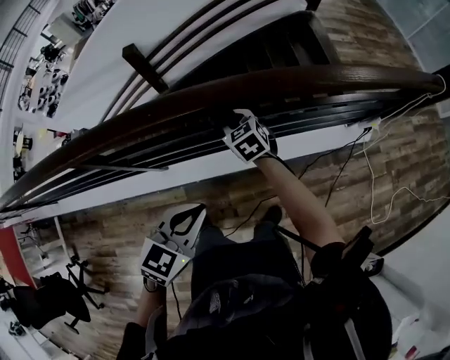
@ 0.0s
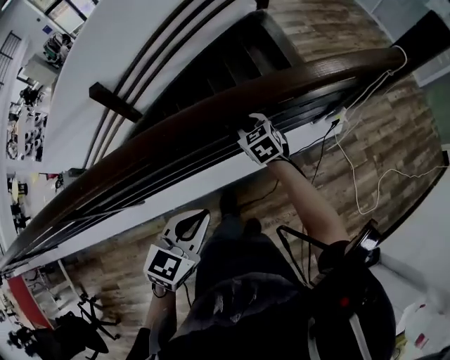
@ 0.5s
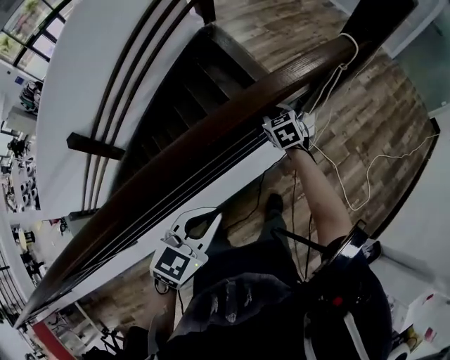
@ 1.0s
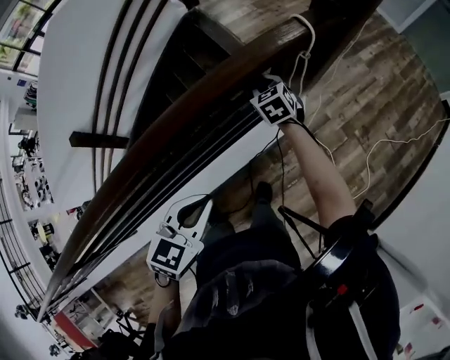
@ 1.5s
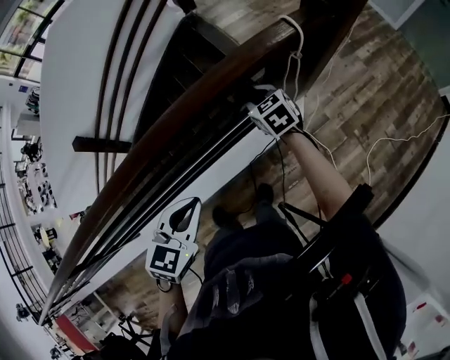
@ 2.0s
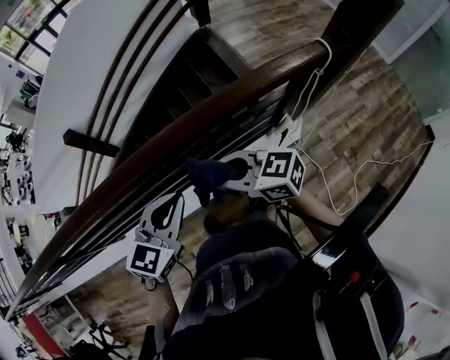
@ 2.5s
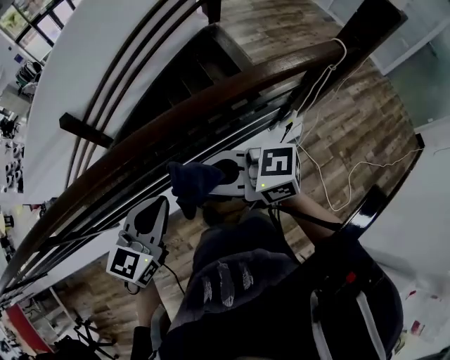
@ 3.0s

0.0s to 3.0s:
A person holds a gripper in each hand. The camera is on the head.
0.0s to 1.5s: The two grippers travel together, about 70 cm. The right gripper turns by some 30 degrees.
1.5s to 3.0s: The right gripper moves some 60 cm, and points its fingers roughly 30 degrees further upward. The left gripper shifts by roughly 30 cm, and rotates roughly 30 degrees.

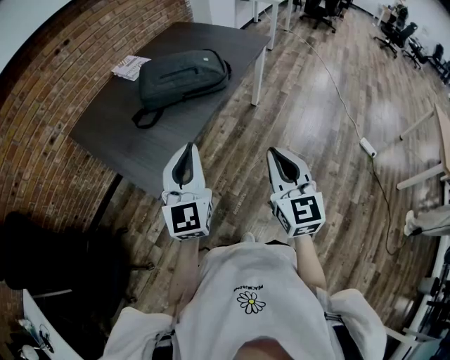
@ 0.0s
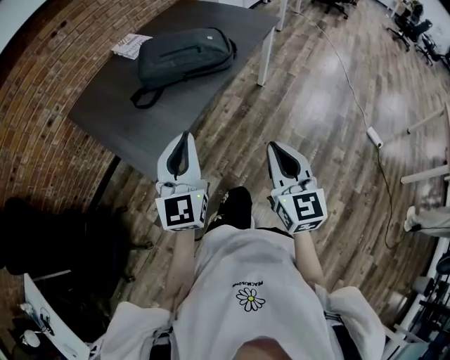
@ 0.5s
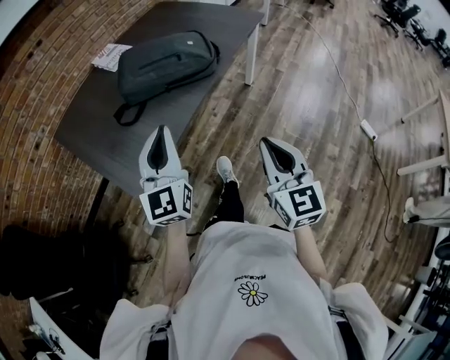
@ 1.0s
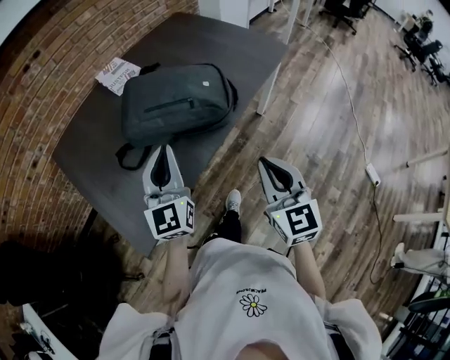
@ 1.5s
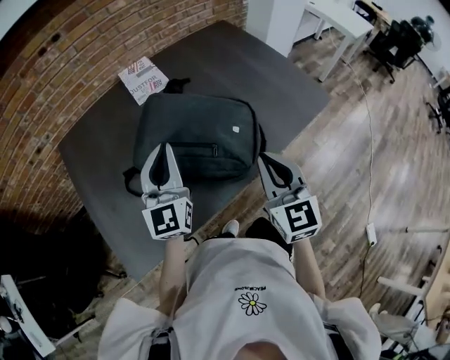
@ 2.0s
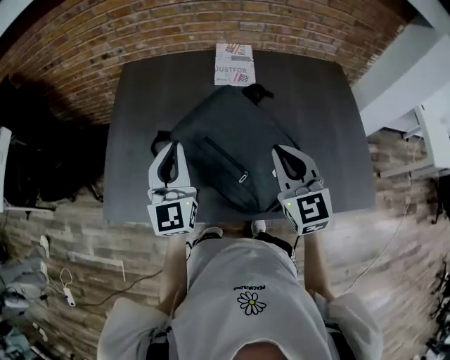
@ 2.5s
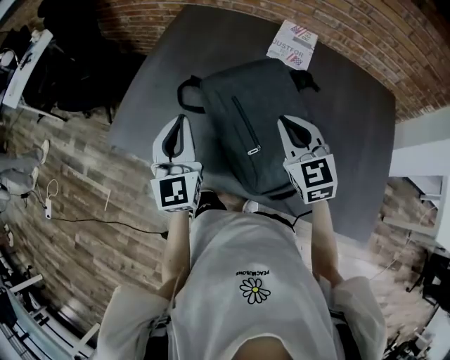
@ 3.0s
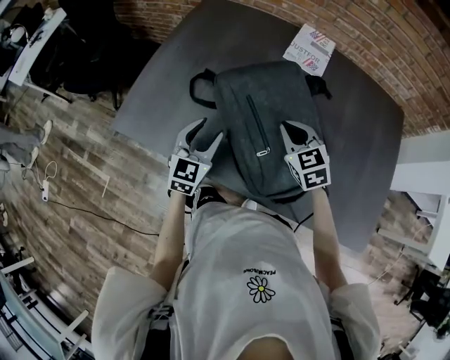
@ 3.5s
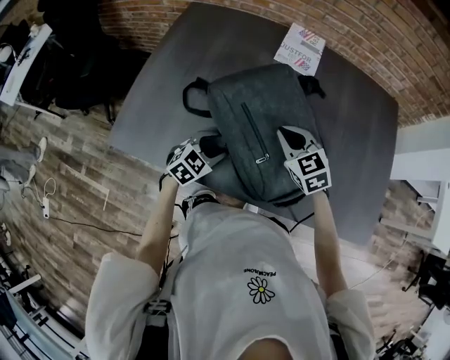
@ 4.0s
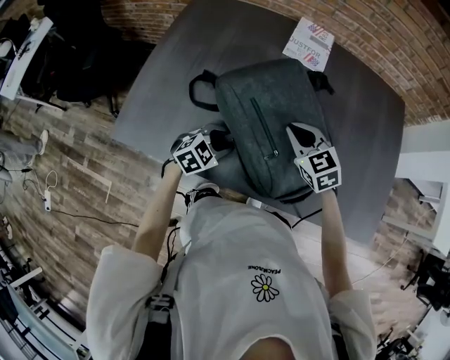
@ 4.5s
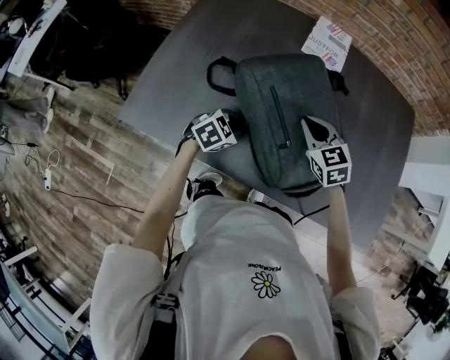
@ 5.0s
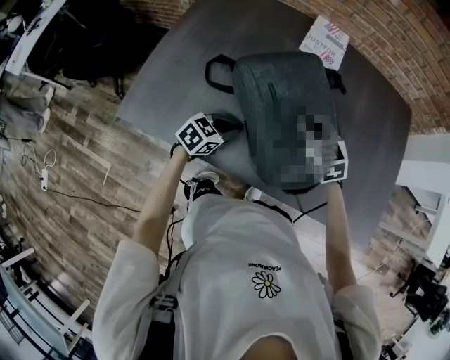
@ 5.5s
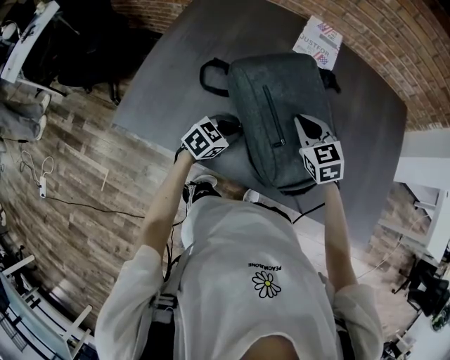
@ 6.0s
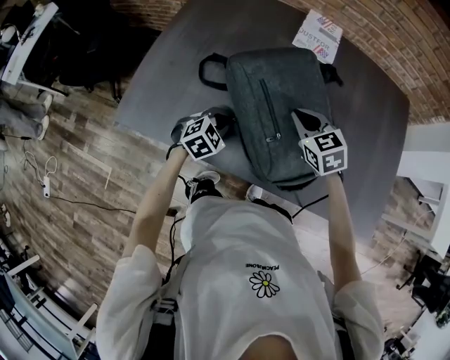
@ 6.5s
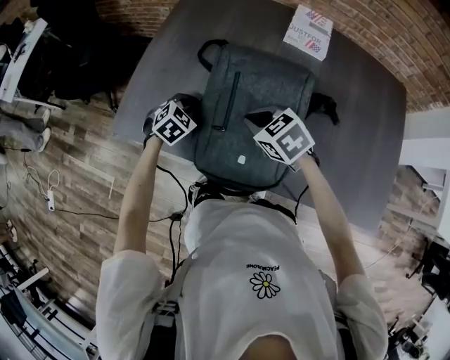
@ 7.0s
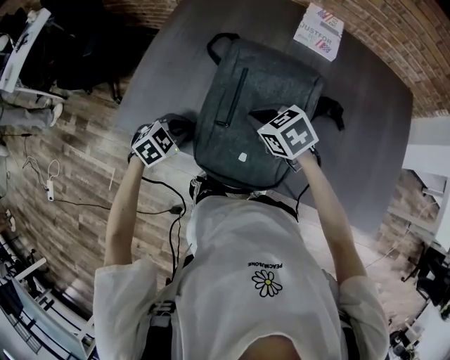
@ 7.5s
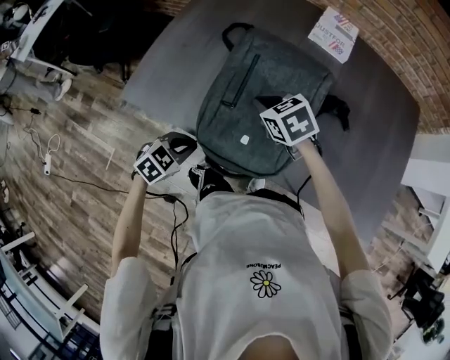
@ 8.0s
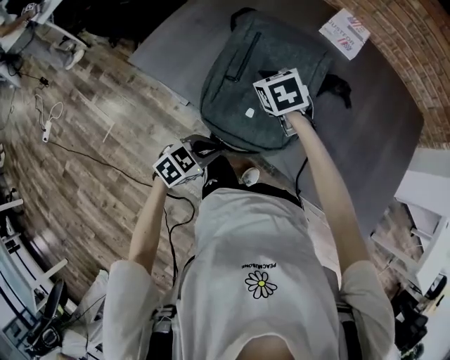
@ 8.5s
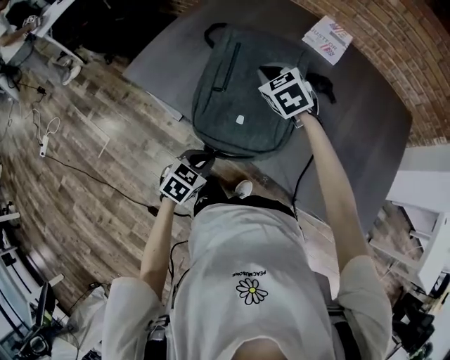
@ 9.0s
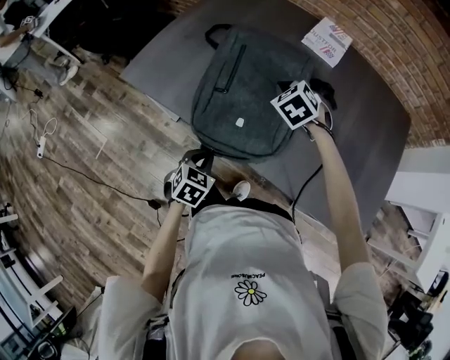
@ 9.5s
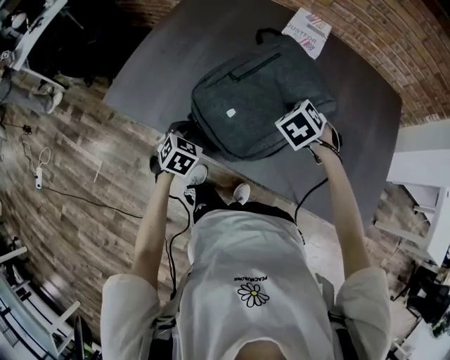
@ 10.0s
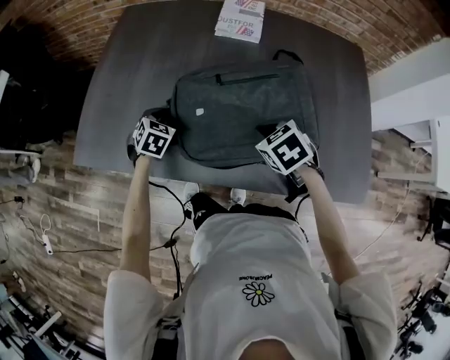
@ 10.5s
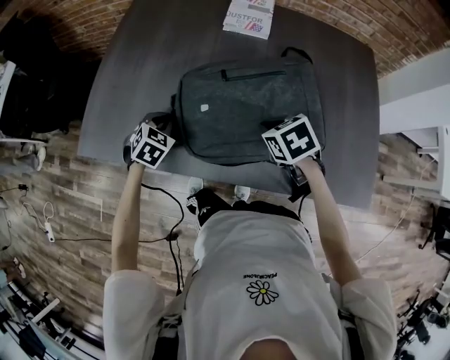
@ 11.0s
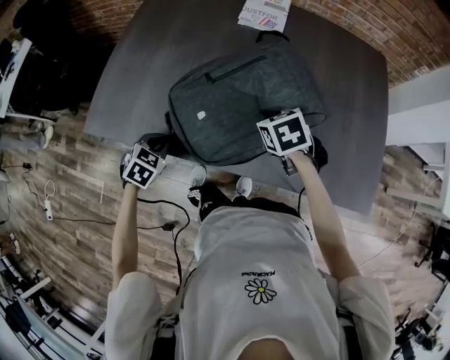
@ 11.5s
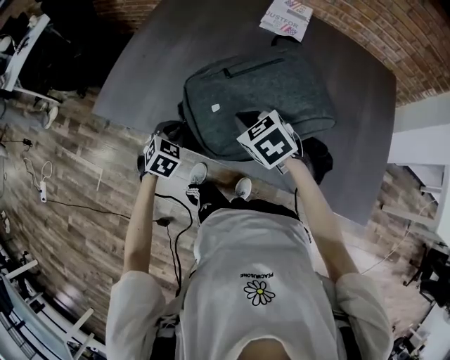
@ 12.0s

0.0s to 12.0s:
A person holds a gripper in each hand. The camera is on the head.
0.0s to 2.0s: The two grippers travel together, forward, roughly 40 cm. The right gripper rotates some 30 degrees. Meanwhile the left gripper turns by about 20 degrees.
2.0s to 4.0s: The left gripper heads downward, covering some 25 cm, tips its fingers downward by about 50 degrees, and opens up; the right gripper changes place by some 25 cm, and rotates about 70 degrees.
4.0s to 6.0s: The left gripper closes its fingers.
6.0s to 8.0s: The left gripper shifts by about 20 cm. The right gripper moves approximately 15 cm, and changes its angle by some 30 degrees.
8.0s to 10.0s: The left gripper heads forward and to the right, covering about 10 cm, and swivels some 30 degrees; the right gripper moves to the right, some 15 cm, and swivels some 30 degrees.
10.0s to 12.0s: The right gripper shifts some 10 cm to the left and backward, and rotates approximately 30 degrees. Meanwhile the left gripper travels forward and back again, about 15 cm each way.

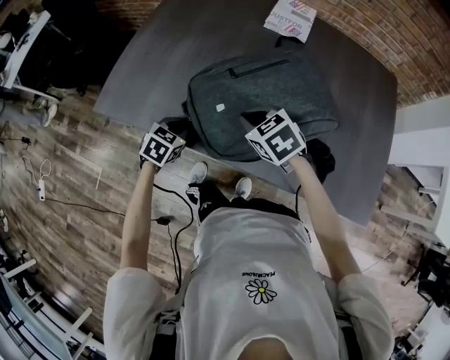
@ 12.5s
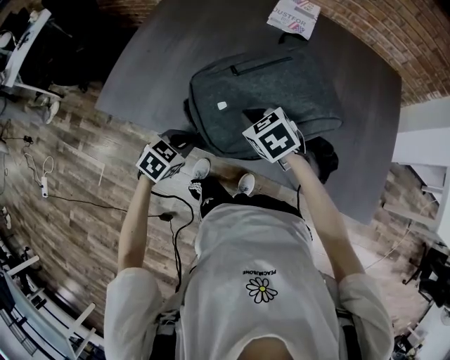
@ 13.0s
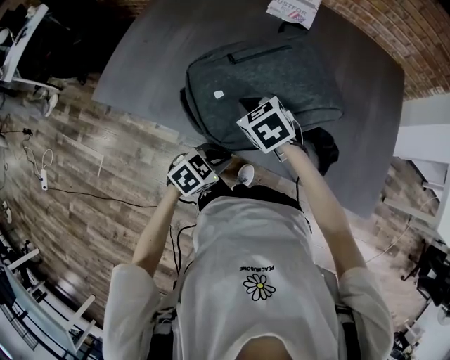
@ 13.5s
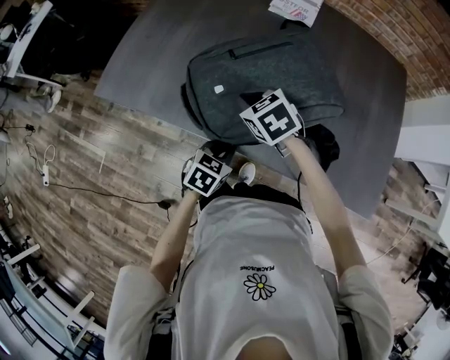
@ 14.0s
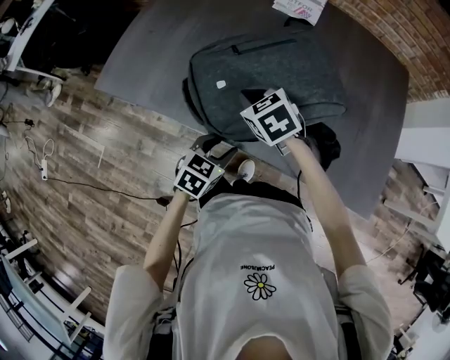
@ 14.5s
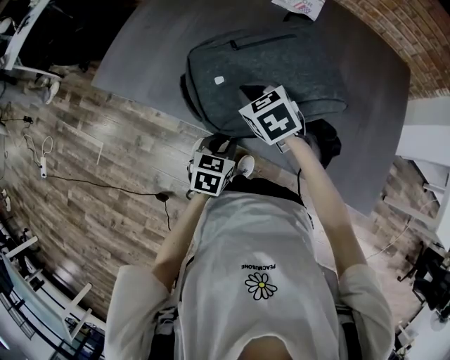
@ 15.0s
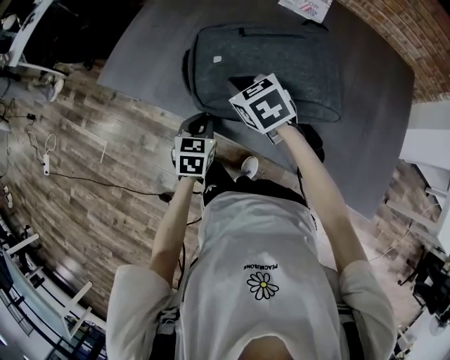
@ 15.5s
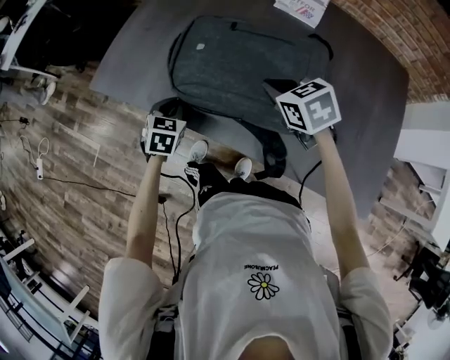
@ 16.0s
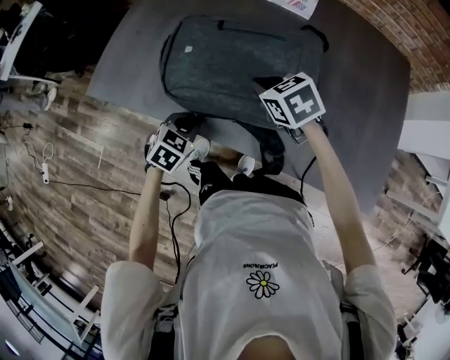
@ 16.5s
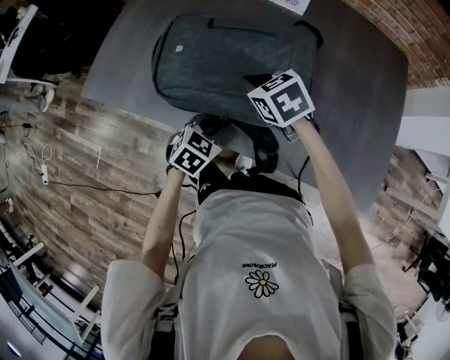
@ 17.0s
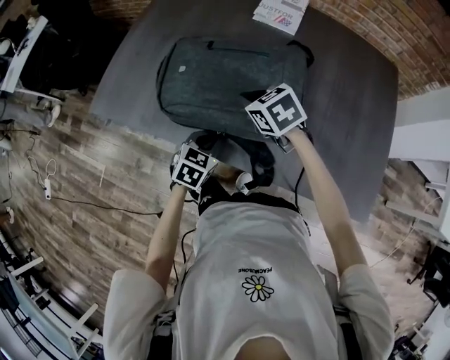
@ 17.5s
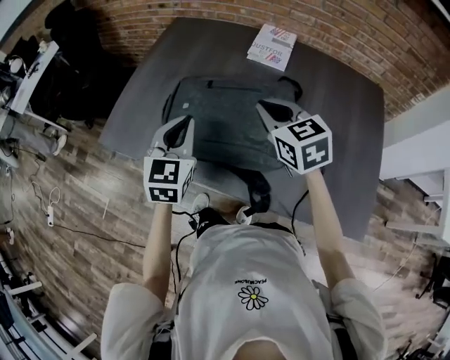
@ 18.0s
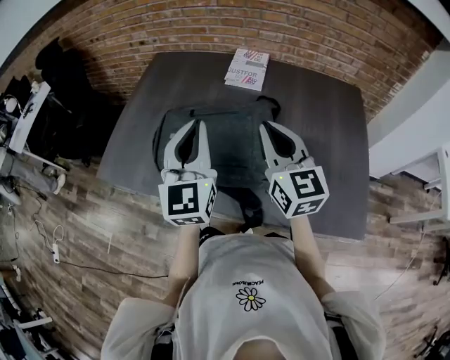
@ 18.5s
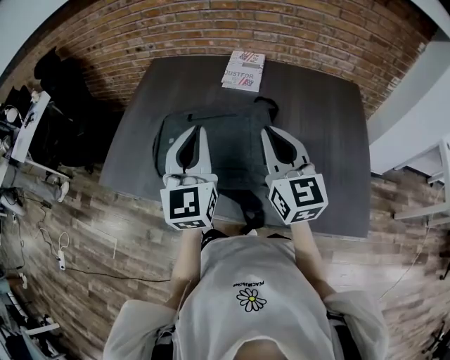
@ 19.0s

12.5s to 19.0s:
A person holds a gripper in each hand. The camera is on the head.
12.5s to 14.5s: The left gripper moves to the right and backward, about 15 cm, and opens its fingers.
14.5s to 17.0s: The left gripper is displaced forward by about 5 cm, reaches about 15 cm to the left, then returns, and closes its fingers. The right gripper changes place by some 5 cm.
17.0s to 19.0s: The right gripper heads upward and to the right, covering approximately 25 cm, and tips its fingers upward by about 50 degrees; the left gripper is displaced upward by approximately 30 cm, and points its fingers some 50 degrees further upward.

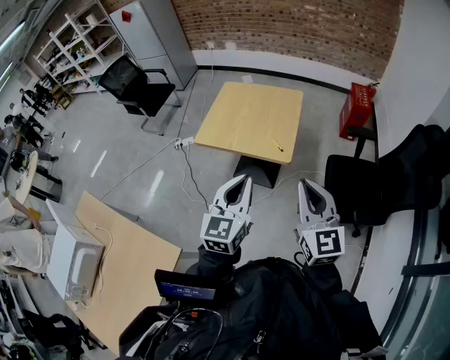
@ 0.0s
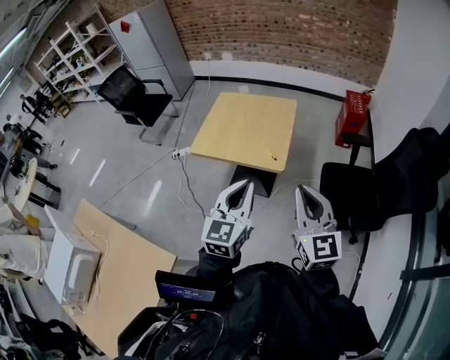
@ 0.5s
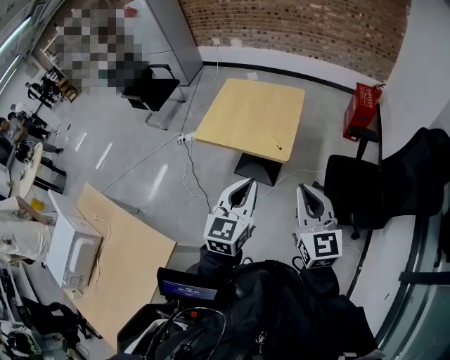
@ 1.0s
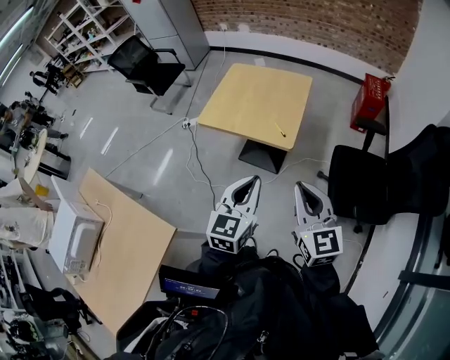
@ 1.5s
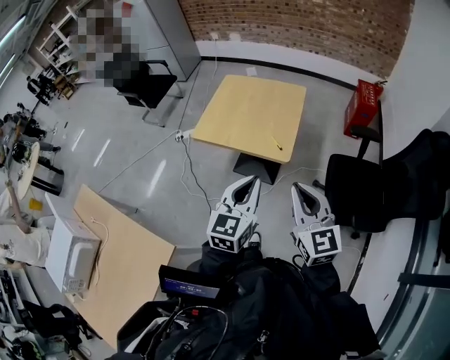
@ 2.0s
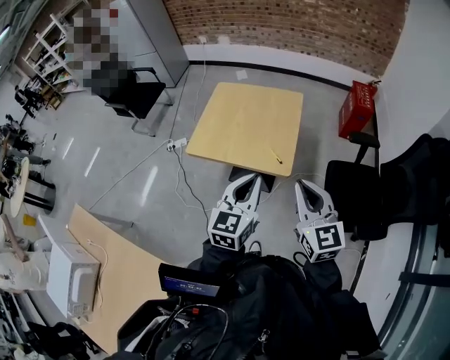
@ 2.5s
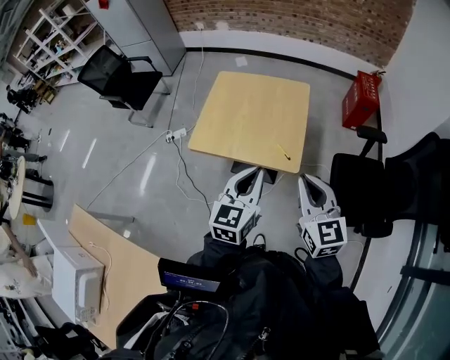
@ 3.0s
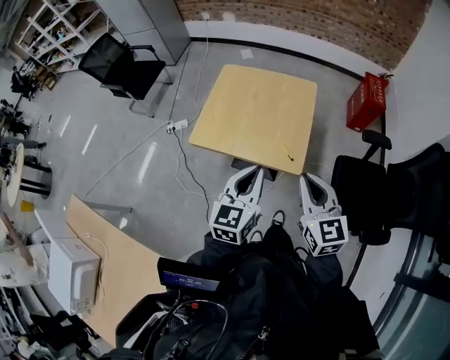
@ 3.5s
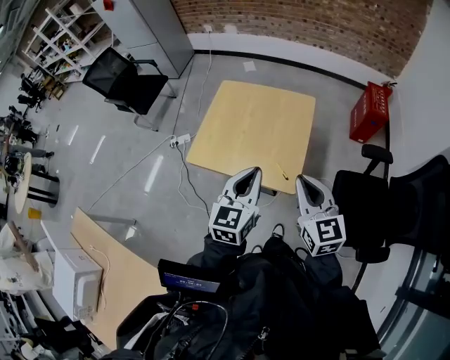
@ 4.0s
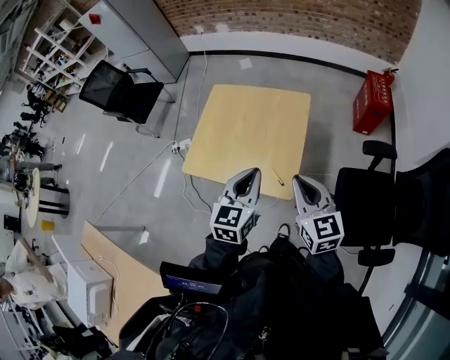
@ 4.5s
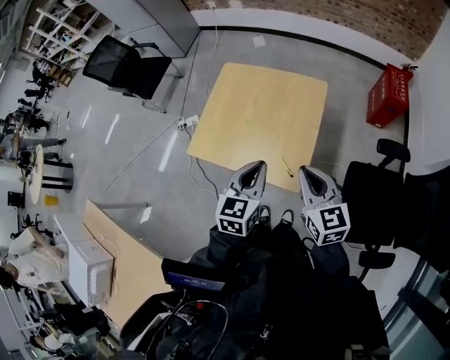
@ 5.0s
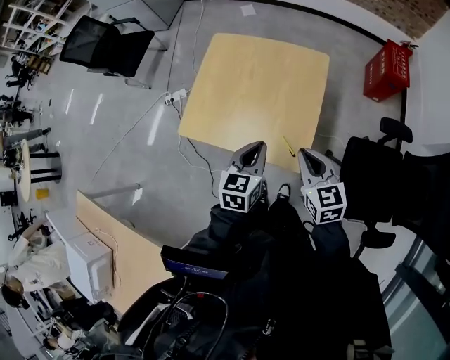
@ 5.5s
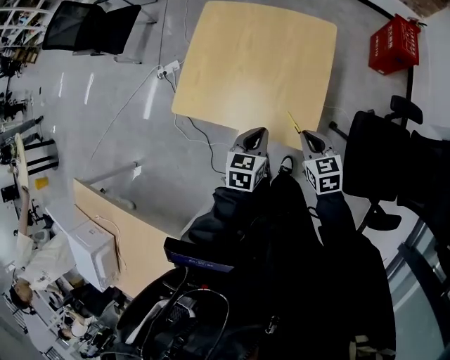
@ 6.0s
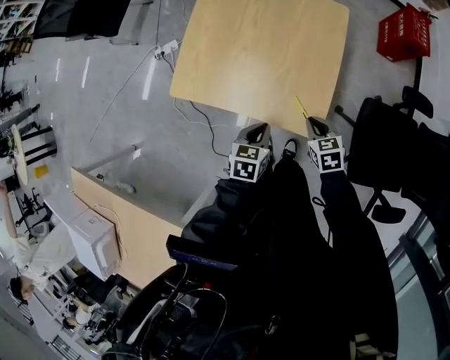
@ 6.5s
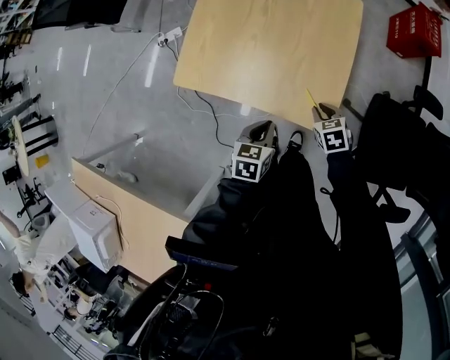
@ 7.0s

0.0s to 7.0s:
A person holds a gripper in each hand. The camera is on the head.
0.0s to 2.0s: The right gripper ends up some 5 cm from where it was; the left gripper moves about 5 cm.
2.0s to 3.5s: The left gripper goes some 20 cm forward and to the left, while the right gripper goes some 15 cm forward.
3.5s to 5.0s: Both grippers travel together forward and to the right, some 15 cm.
5.0s to 7.0s: The grippers both shift downward by some 30 cm. The right gripper tips its fingers downward by approximately 40 degrees, while the left gripper swivels approximately 30 degrees.
